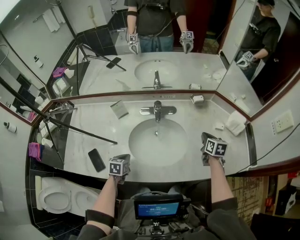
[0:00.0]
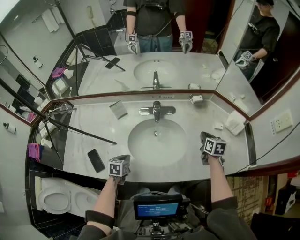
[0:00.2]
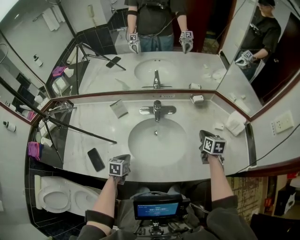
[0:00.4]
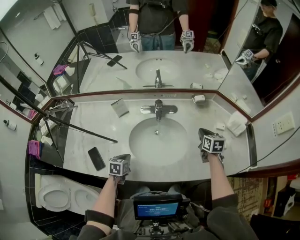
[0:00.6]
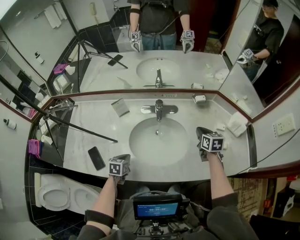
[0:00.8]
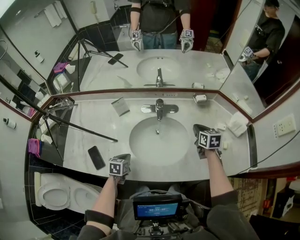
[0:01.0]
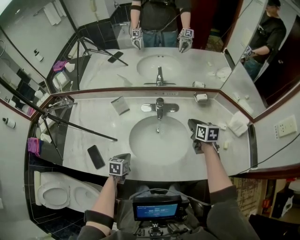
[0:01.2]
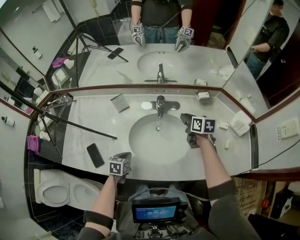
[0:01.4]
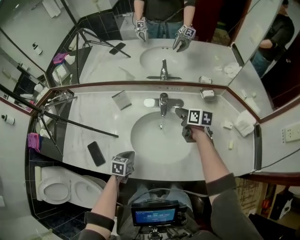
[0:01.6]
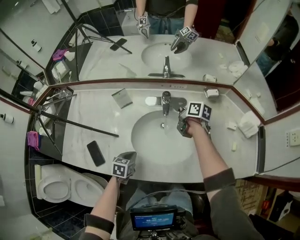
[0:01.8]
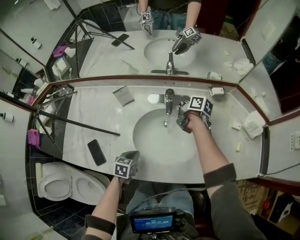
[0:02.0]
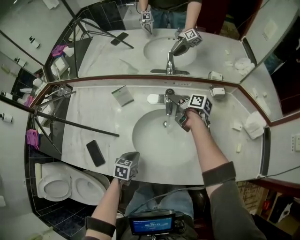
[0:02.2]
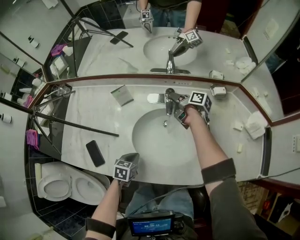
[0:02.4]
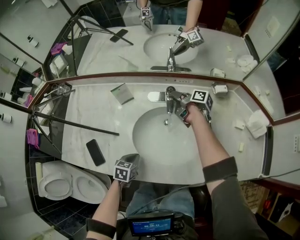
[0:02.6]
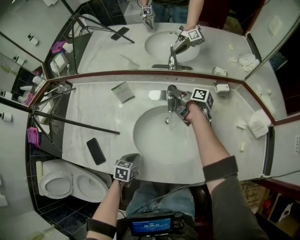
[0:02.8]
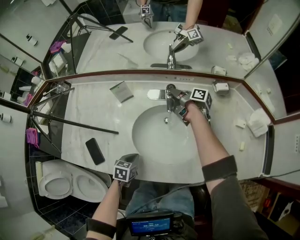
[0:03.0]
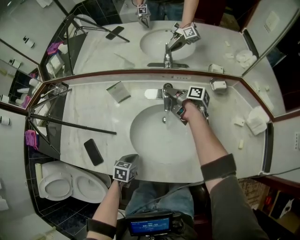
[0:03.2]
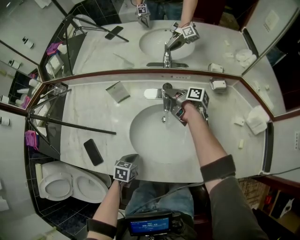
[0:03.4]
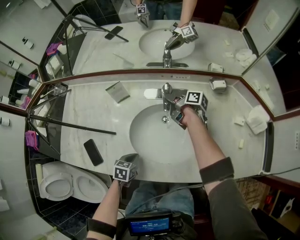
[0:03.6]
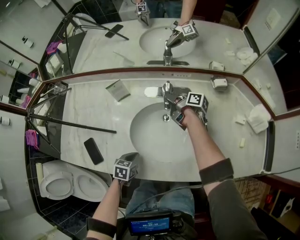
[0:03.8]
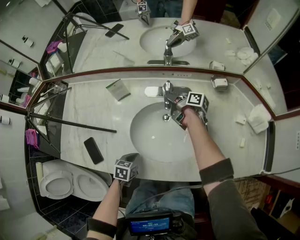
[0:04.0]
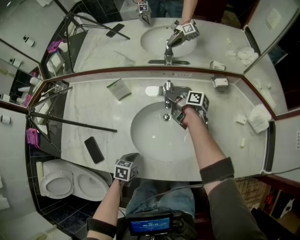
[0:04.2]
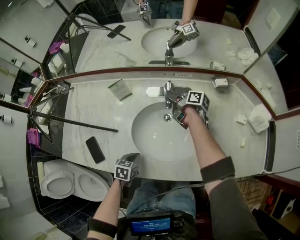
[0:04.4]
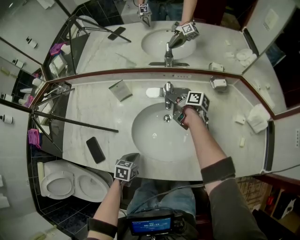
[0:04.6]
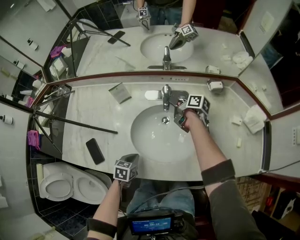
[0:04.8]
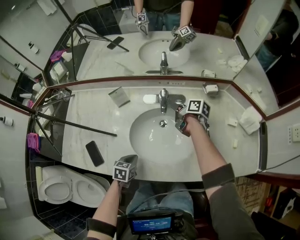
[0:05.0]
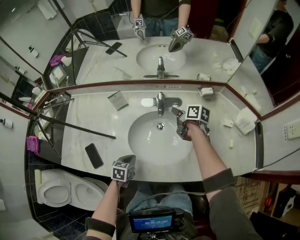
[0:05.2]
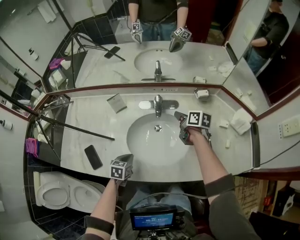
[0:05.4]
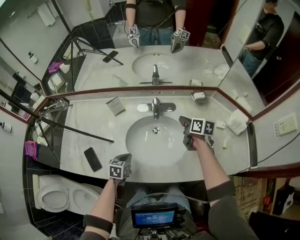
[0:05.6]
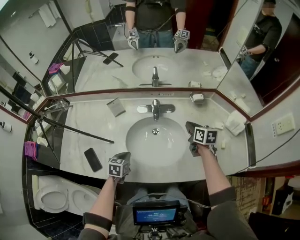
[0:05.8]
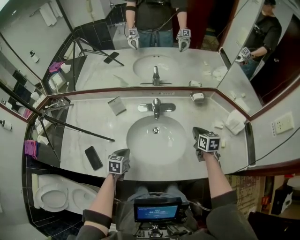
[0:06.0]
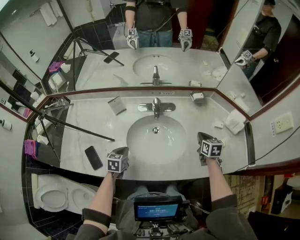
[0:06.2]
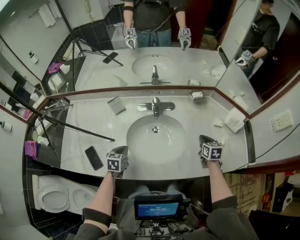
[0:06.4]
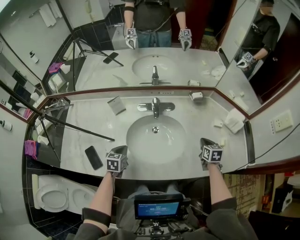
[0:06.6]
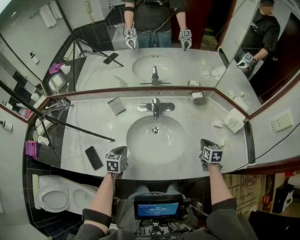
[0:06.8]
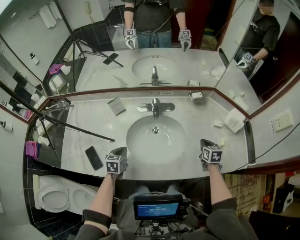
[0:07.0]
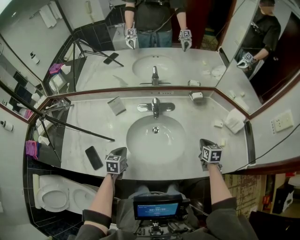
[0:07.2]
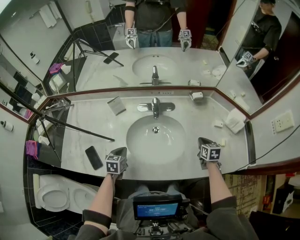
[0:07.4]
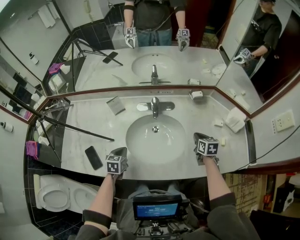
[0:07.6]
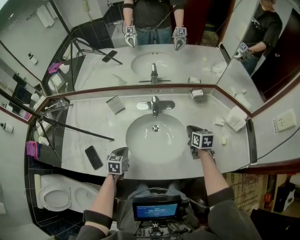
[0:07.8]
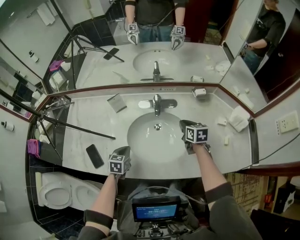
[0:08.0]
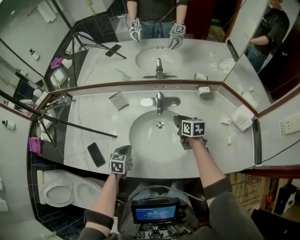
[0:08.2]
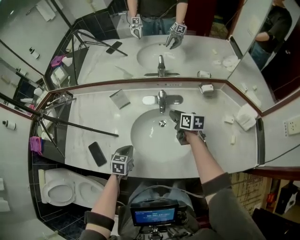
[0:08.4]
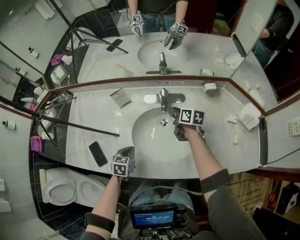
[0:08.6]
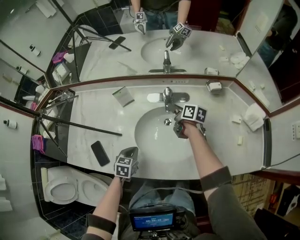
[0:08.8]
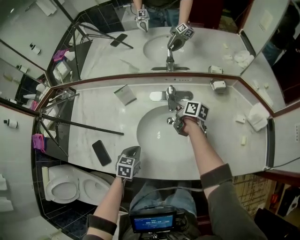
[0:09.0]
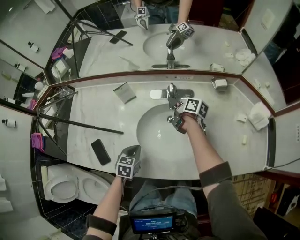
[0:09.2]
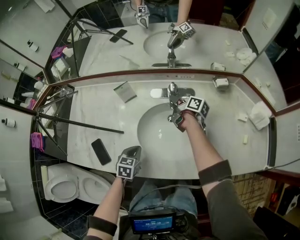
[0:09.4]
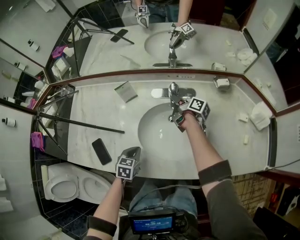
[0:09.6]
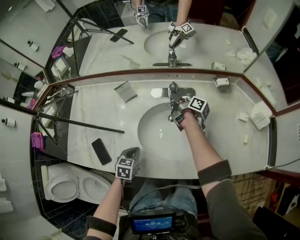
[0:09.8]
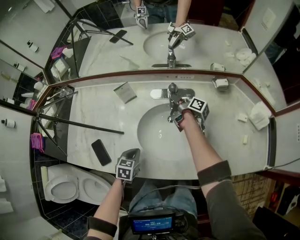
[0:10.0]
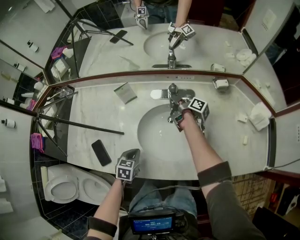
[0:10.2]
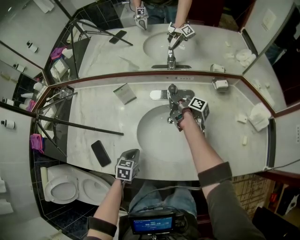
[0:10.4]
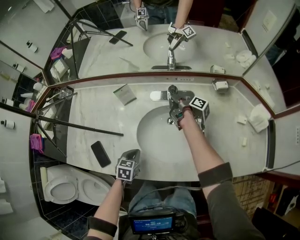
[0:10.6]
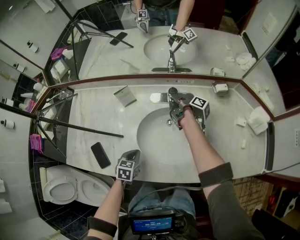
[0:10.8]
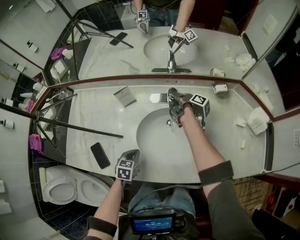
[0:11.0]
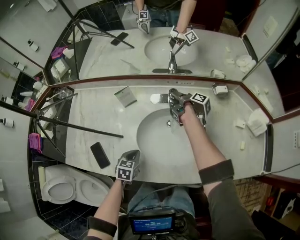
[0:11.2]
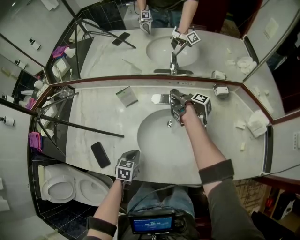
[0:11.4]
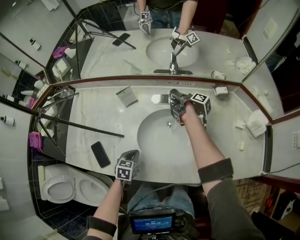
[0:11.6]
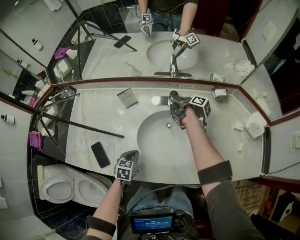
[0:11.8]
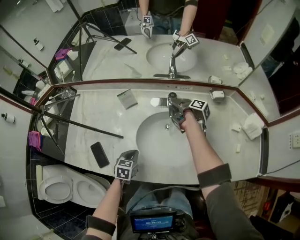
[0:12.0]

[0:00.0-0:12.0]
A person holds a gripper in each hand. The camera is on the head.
0:00.0 to 0:01.6: The right gripper goes roughly 20 cm to the left and forward, rotates approximately 20 degrees, and opens.
0:01.6 to 0:03.0: The right gripper shifts approximately 15 cm forward, downward and to the left, and rolls clockwise, seen from behind, by roughly 40 degrees.
0:03.0 to 0:04.4: The grippers make only small movements.
0:04.4 to 0:06.0: The right gripper shifts roughly 25 cm to the right, backward and upward, twists roughly 50 degrees counterclockwise, seen from behind, and closes its fingers, while the left gripper moves upward, roughly 5 cm.
0:07.6 to 0:09.0: The right gripper moves to the left and forward, roughly 25 cm, swivels about 40 degrees, and opens.
0:09.0 to 0:10.4: The right gripper changes its angle by approximately 40 degrees, and closes.
0:10.4 to 0:12.0: The grippers make only small movements.

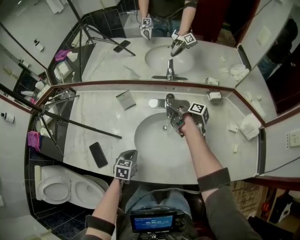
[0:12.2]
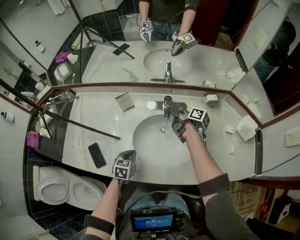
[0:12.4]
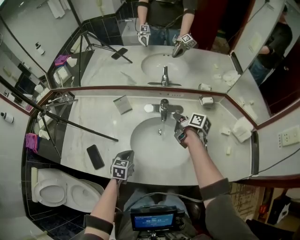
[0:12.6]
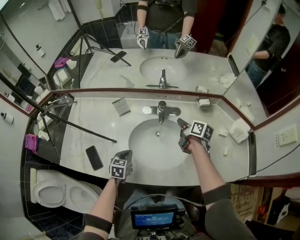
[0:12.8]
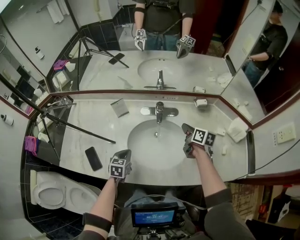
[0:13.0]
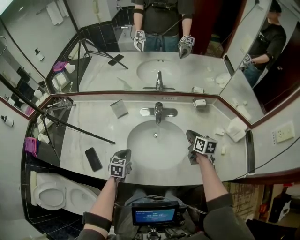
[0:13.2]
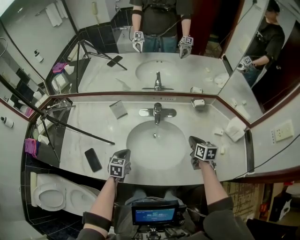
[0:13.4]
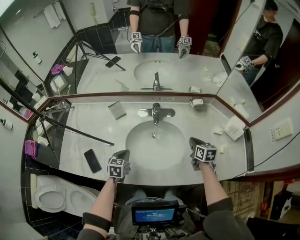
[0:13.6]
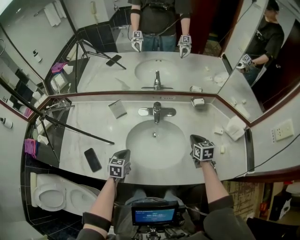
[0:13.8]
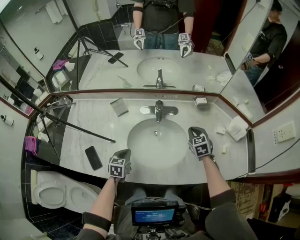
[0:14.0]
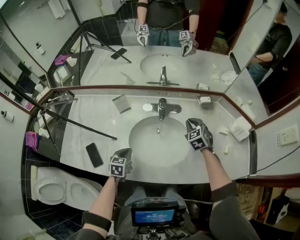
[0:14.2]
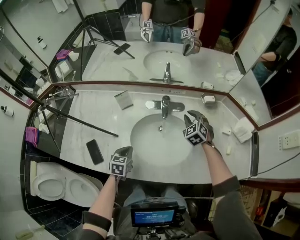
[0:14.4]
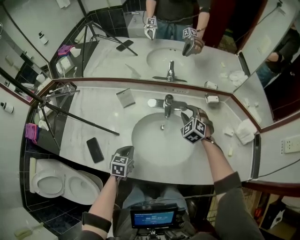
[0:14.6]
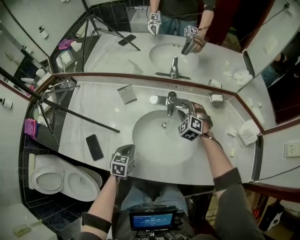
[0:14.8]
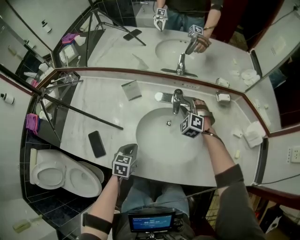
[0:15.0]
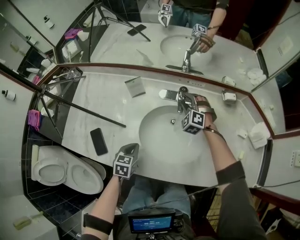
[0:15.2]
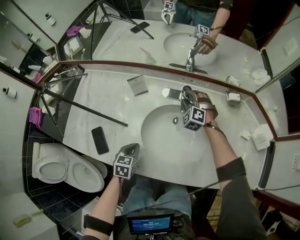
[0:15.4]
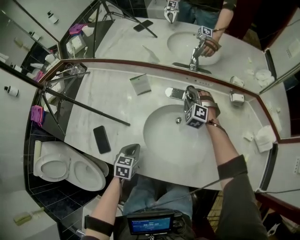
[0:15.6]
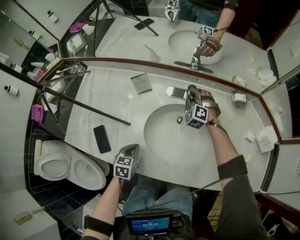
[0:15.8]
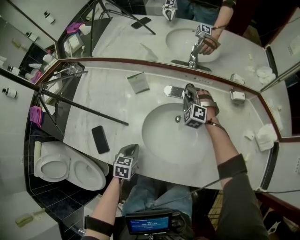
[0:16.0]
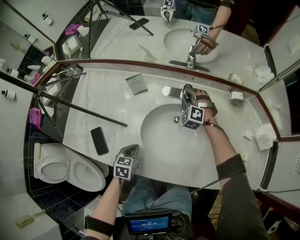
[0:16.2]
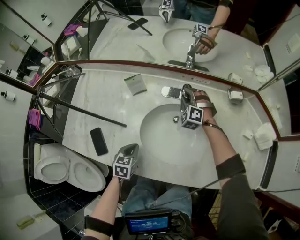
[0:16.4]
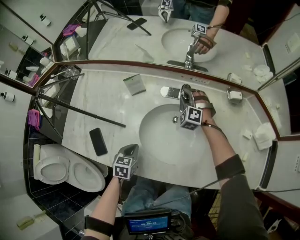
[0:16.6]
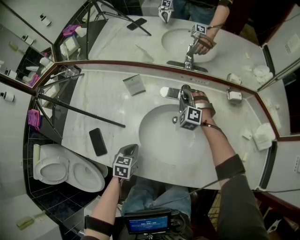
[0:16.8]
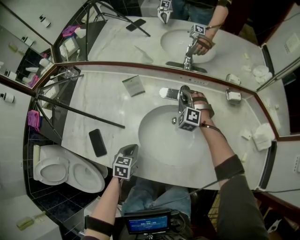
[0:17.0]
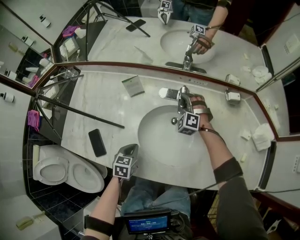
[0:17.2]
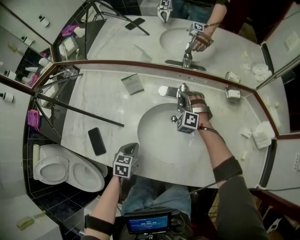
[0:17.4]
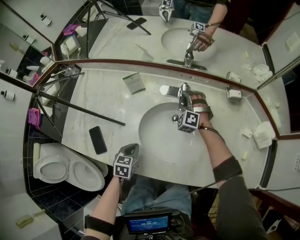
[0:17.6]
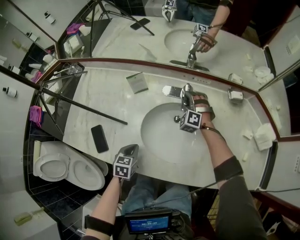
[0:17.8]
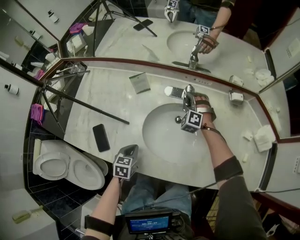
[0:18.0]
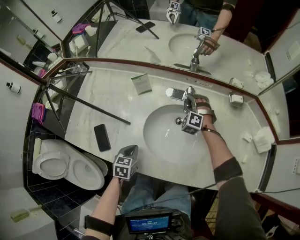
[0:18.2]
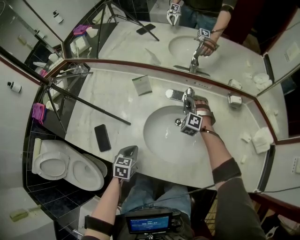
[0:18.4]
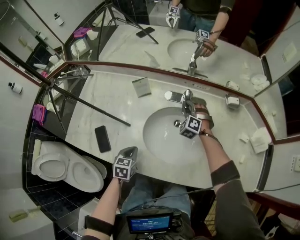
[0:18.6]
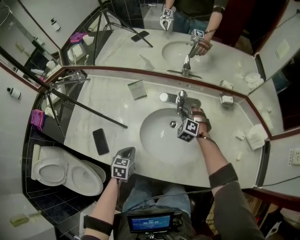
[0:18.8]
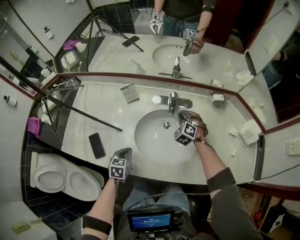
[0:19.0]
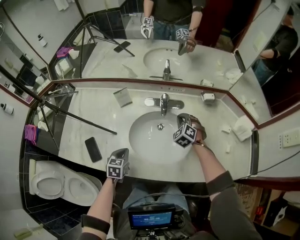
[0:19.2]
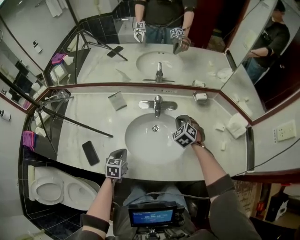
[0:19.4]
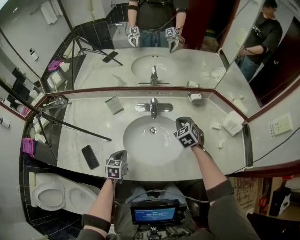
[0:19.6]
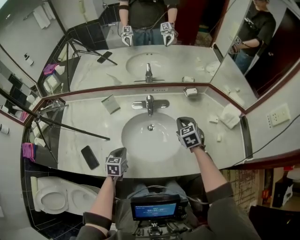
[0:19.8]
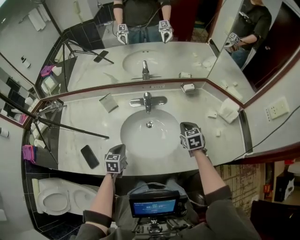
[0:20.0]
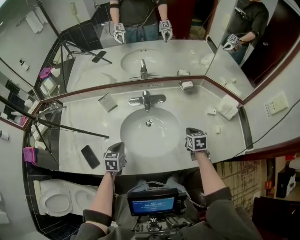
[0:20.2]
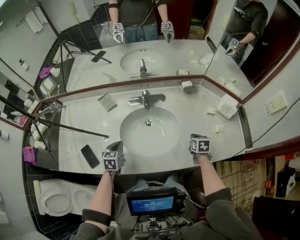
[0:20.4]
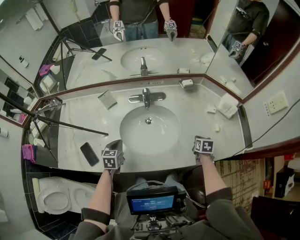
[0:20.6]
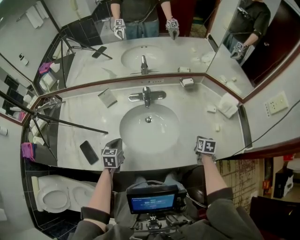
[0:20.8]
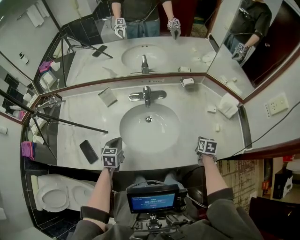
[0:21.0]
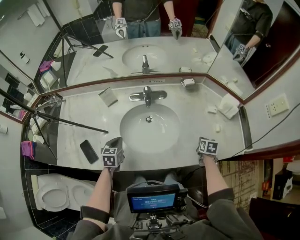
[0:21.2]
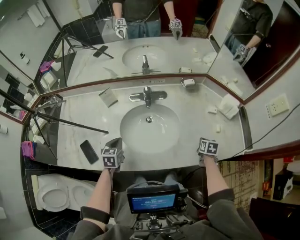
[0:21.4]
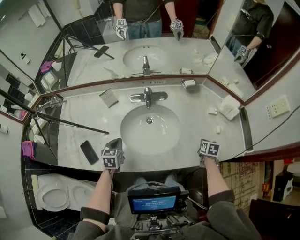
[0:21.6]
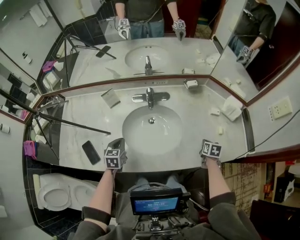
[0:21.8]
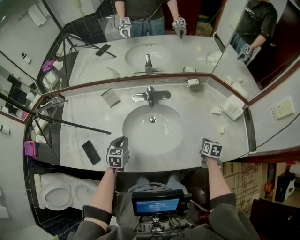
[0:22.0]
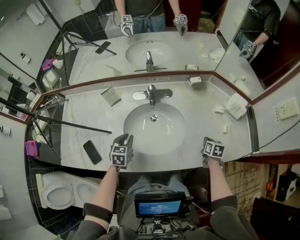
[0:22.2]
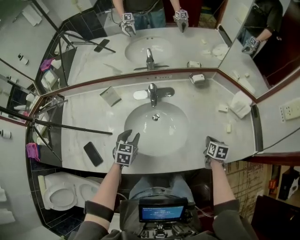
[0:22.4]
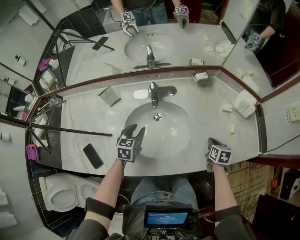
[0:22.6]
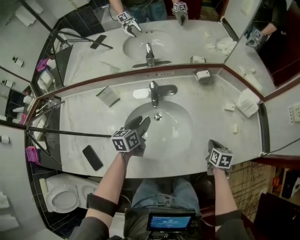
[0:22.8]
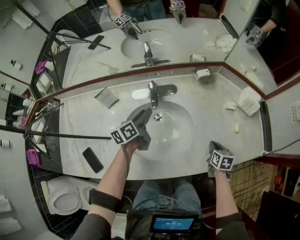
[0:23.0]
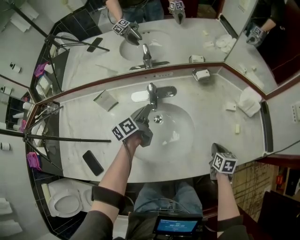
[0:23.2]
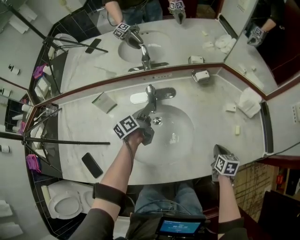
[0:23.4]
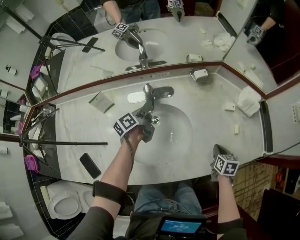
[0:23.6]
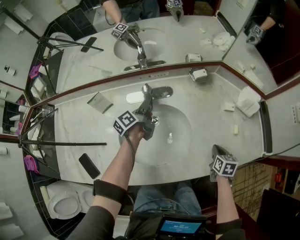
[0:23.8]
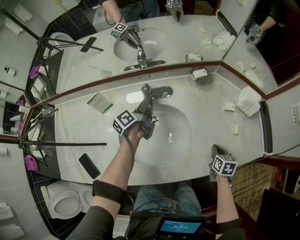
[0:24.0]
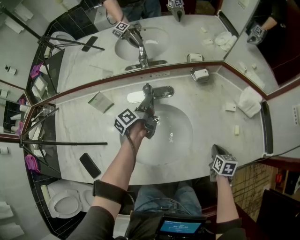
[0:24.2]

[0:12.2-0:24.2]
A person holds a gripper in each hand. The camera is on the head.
0:12.2 to 0:13.8: The right gripper goes approximately 25 cm to the right and backward, and twists approximately 70 degrees counterclockwise, seen from behind.
0:13.8 to 0:15.2: The right gripper travels to the left and forward by about 25 cm, rolls counterclockwise, seen from behind, by roughly 80 degrees, and opens. The left gripper changes place by some 5 cm.
0:15.2 to 0:18.2: There are only small adjustments of the grippers.
0:18.2 to 0:19.8: The left gripper moves some 5 cm, while the right gripper heads to the right, backward and upward, covering approximately 25 cm, rotates around the line of its fingers by approximately 60 degrees, clockwise from behind, and closes its fingers.
0:19.8 to 0:21.2: The right gripper travels to the right, downward and backward by about 30 cm, and twists about 40 degrees clockwise, seen from behind.
0:21.2 to 0:22.6: The left gripper heads forward and to the right, covering about 10 cm, and opens its fingers.
0:22.6 to 0:24.2: The left gripper goes some 20 cm forward, rotates around the line of its fingers by some 70 degrees, counterclockwise from behind, and closes up.
